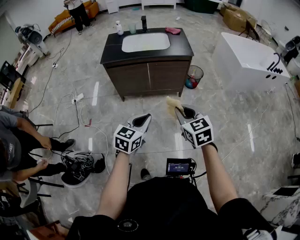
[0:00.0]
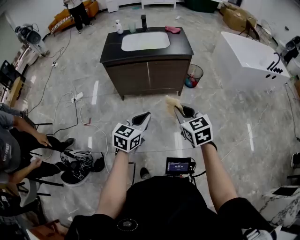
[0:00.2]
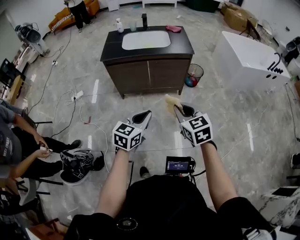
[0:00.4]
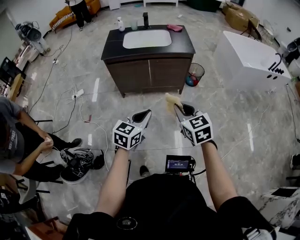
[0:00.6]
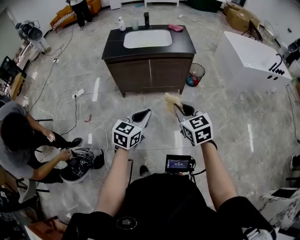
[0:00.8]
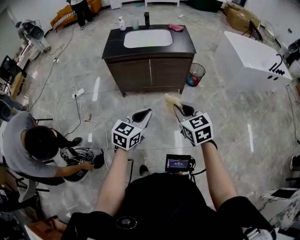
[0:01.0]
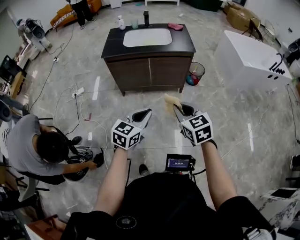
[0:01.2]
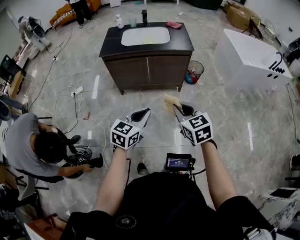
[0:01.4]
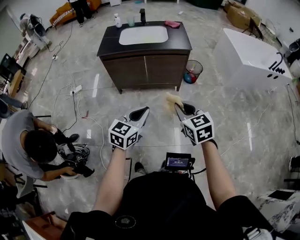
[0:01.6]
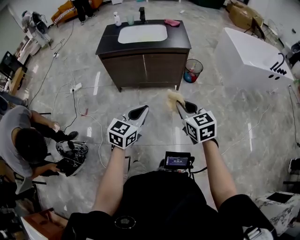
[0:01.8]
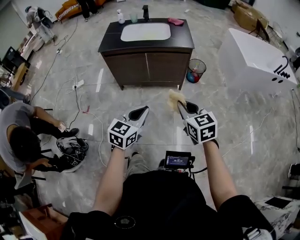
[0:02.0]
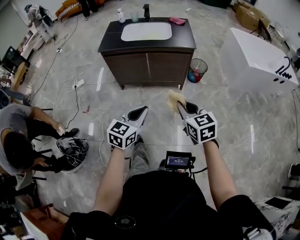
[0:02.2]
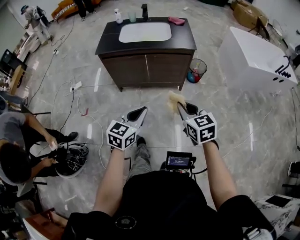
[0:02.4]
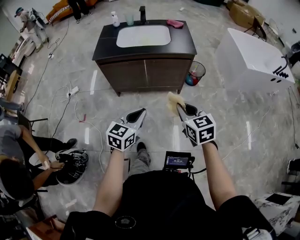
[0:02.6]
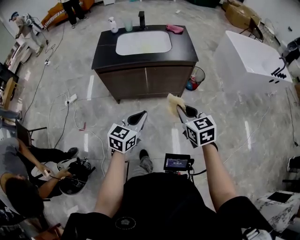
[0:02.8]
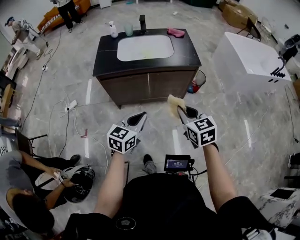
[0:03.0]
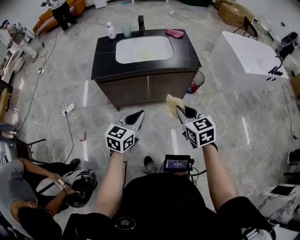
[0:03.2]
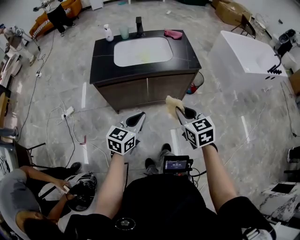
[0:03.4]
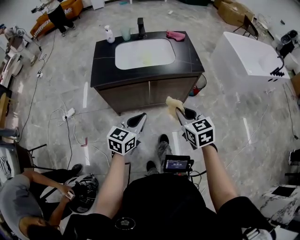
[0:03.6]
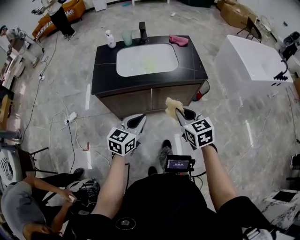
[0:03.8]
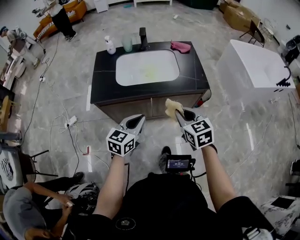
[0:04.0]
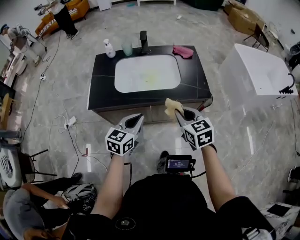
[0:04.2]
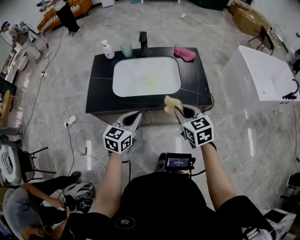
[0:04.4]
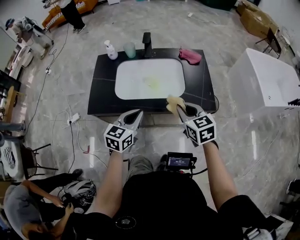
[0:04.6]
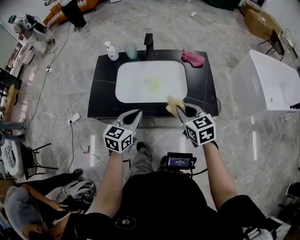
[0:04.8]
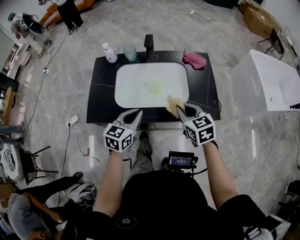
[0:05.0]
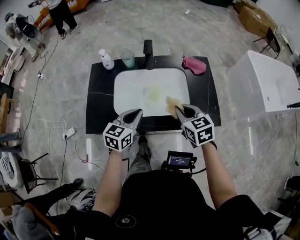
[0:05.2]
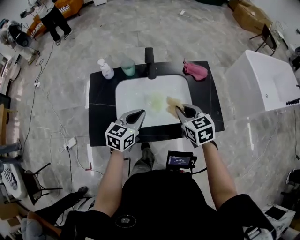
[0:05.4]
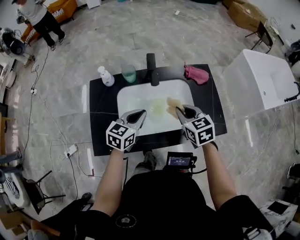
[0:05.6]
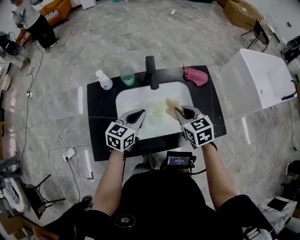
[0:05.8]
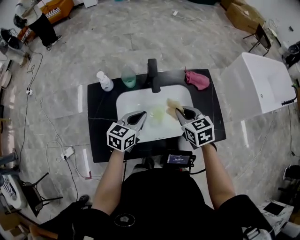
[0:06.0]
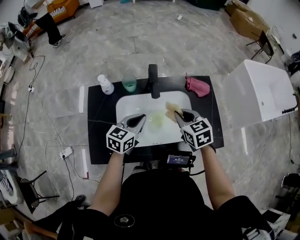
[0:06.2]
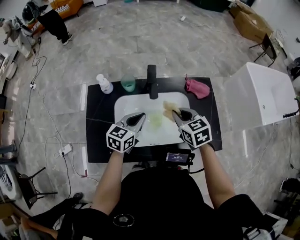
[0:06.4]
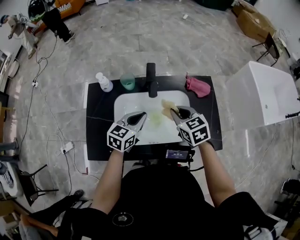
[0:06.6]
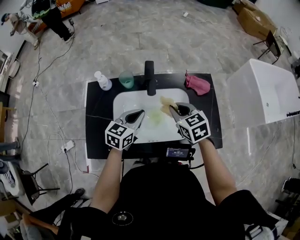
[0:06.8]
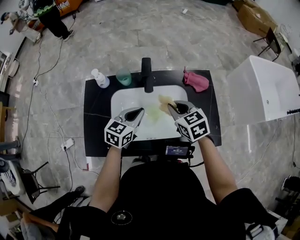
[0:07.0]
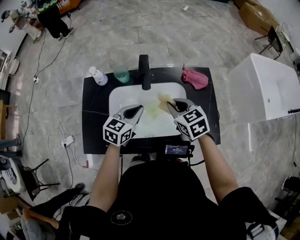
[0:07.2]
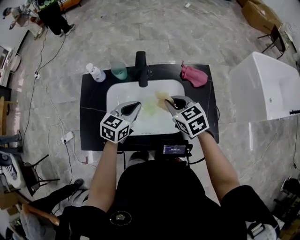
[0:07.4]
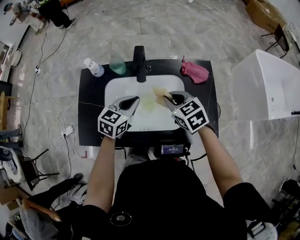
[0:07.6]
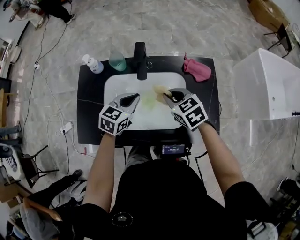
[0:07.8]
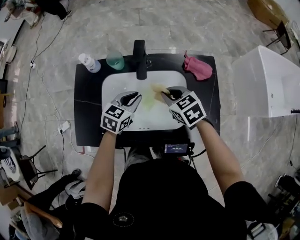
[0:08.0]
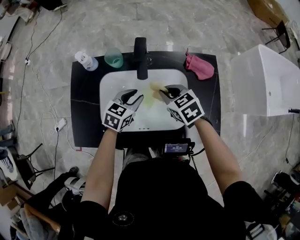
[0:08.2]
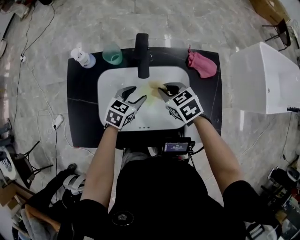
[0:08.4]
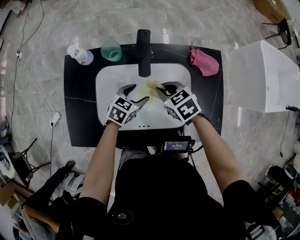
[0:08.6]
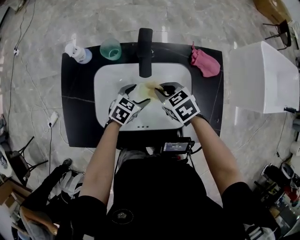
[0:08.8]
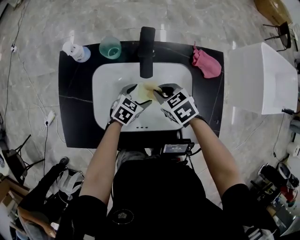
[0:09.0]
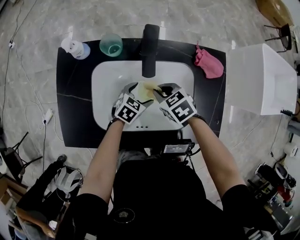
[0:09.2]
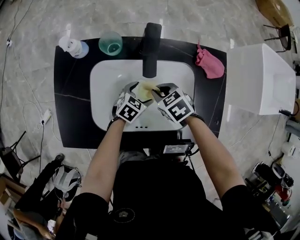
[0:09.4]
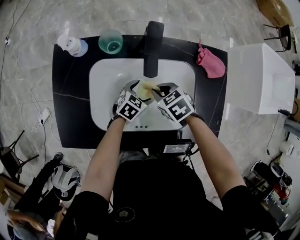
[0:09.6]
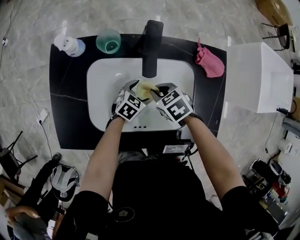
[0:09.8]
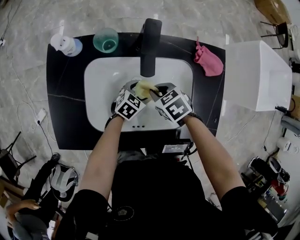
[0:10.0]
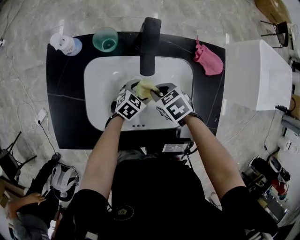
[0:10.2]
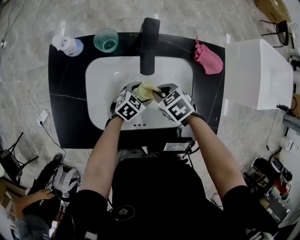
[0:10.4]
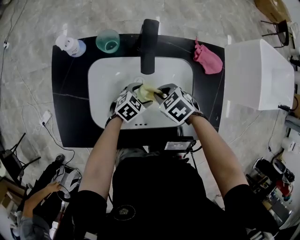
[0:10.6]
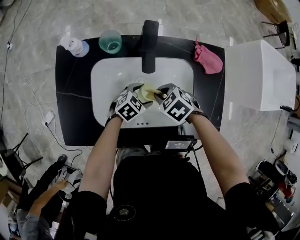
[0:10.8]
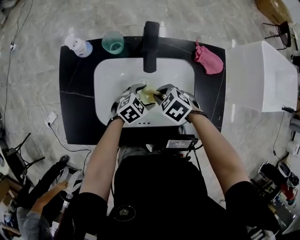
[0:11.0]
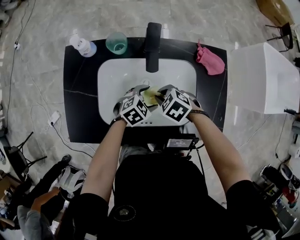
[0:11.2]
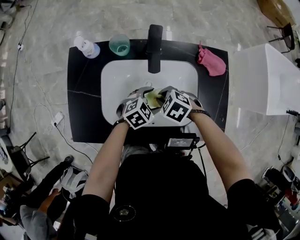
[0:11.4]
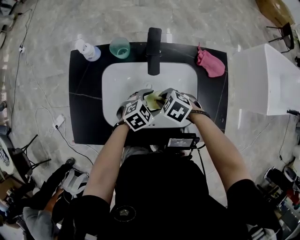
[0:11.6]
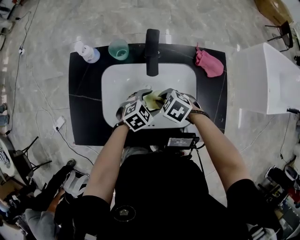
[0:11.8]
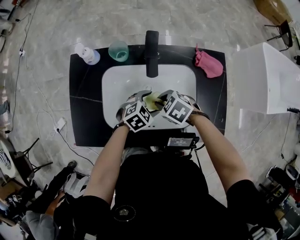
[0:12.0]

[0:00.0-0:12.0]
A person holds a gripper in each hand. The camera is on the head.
0:00.0 to 0:01.6: The grippers move only a little.
0:01.6 to 0:03.0: The right gripper moves forward, about 20 cm. Meanwhile the left gripper heads forward and to the left, covering approximately 20 cm.
0:03.0 to 0:04.4: Both grippers travel together forward, approximately 30 cm.
0:04.4 to 0:06.0: Both grippers move forward, approximately 30 cm.
0:06.0 to 0:07.6: The right gripper swivels approximately 20 degrees, while the left gripper goes roughly 5 cm to the right.
0:07.6 to 0:09.0: The right gripper travels downward and to the left by some 15 cm, while the left gripper is displaced downward by approximately 20 cm, swivels some 20 degrees, and opens up.
0:09.0 to 0:10.4: The left gripper moves roughly 5 cm, while the right gripper shifts by approximately 5 cm.
0:10.4 to 0:12.0: The right gripper shifts by about 5 cm. The left gripper goes roughly 10 cm upward.

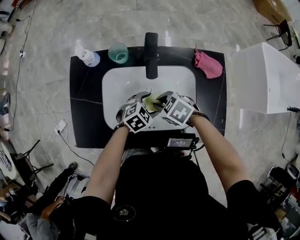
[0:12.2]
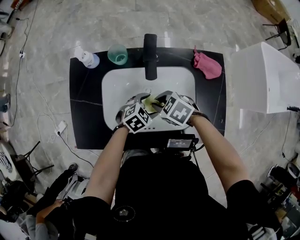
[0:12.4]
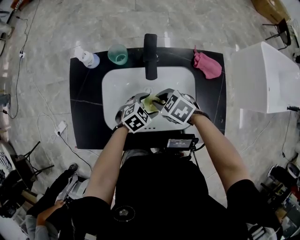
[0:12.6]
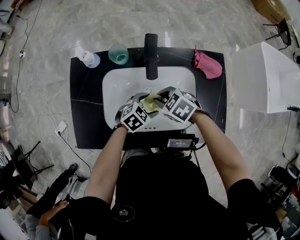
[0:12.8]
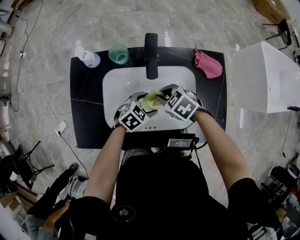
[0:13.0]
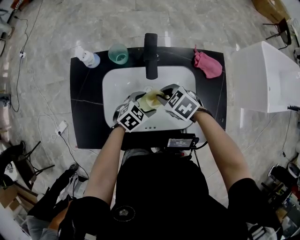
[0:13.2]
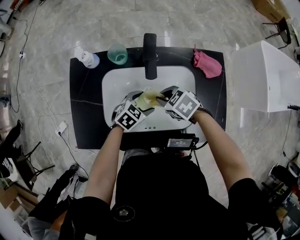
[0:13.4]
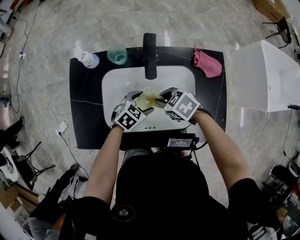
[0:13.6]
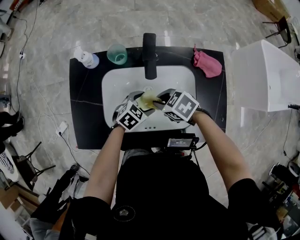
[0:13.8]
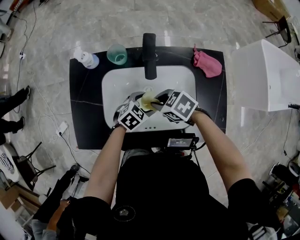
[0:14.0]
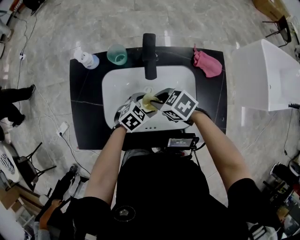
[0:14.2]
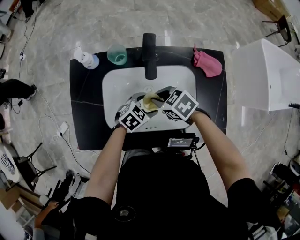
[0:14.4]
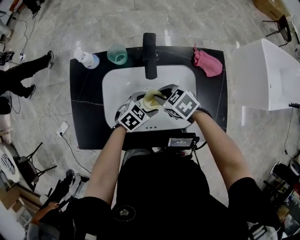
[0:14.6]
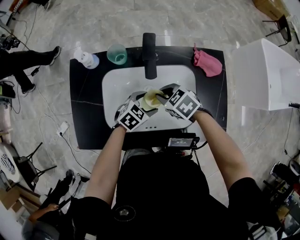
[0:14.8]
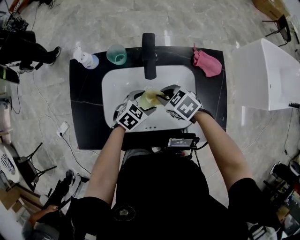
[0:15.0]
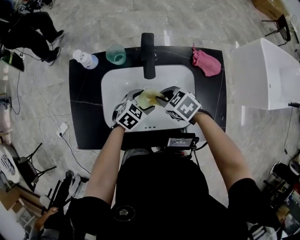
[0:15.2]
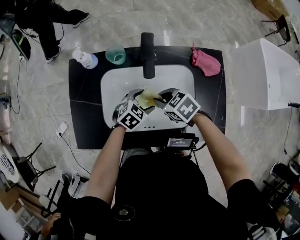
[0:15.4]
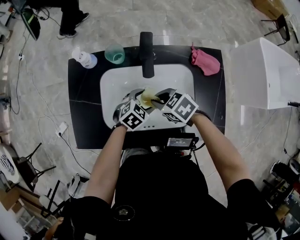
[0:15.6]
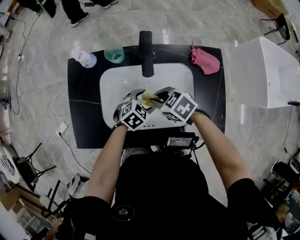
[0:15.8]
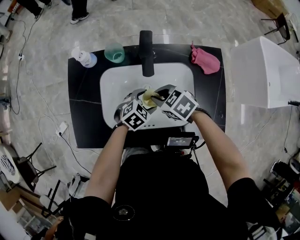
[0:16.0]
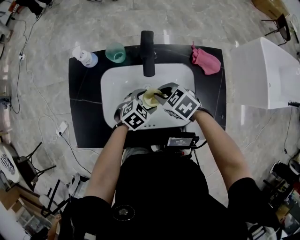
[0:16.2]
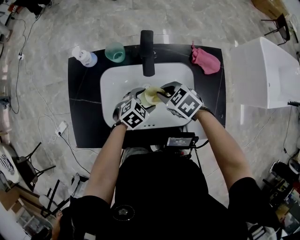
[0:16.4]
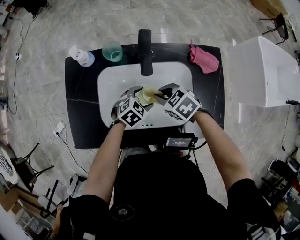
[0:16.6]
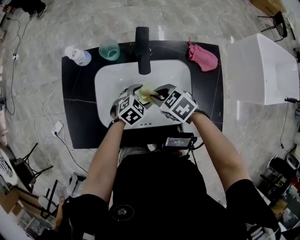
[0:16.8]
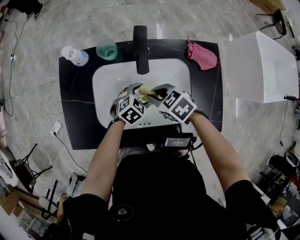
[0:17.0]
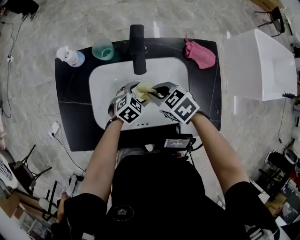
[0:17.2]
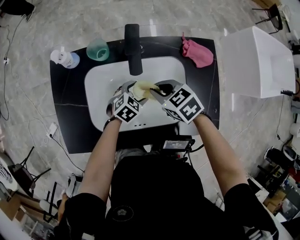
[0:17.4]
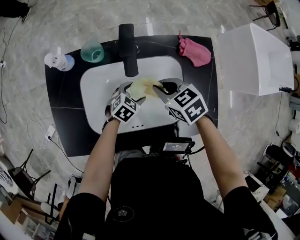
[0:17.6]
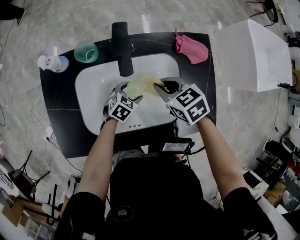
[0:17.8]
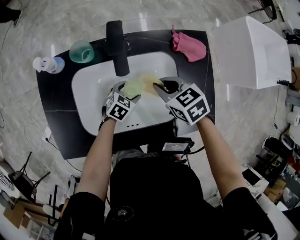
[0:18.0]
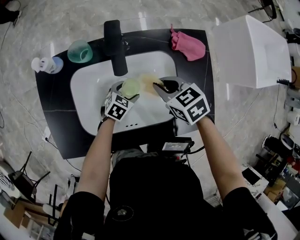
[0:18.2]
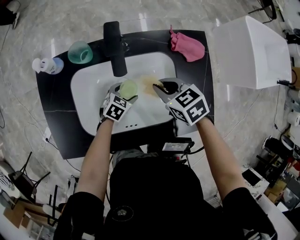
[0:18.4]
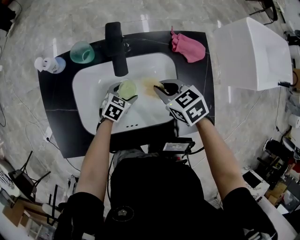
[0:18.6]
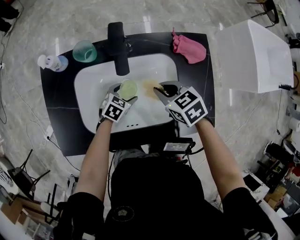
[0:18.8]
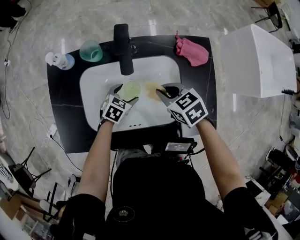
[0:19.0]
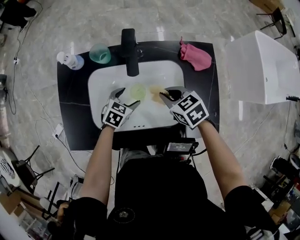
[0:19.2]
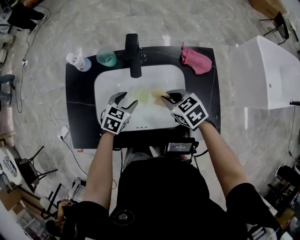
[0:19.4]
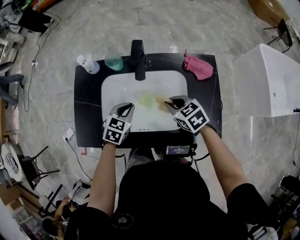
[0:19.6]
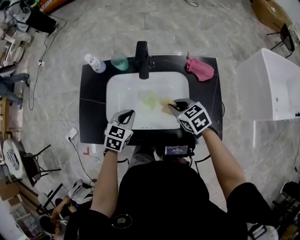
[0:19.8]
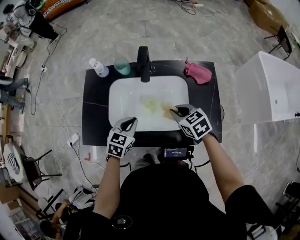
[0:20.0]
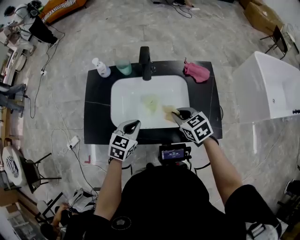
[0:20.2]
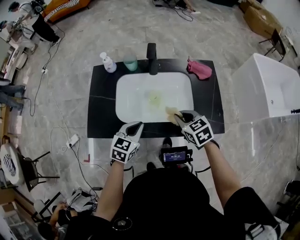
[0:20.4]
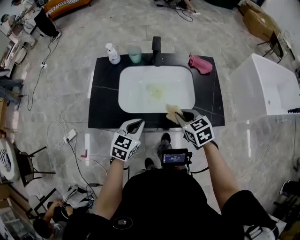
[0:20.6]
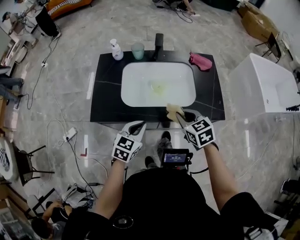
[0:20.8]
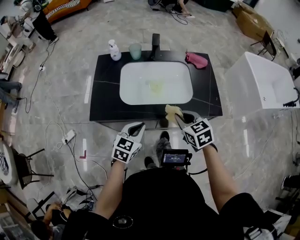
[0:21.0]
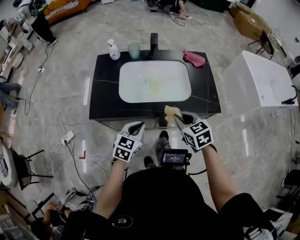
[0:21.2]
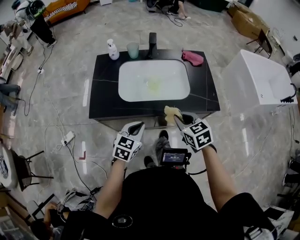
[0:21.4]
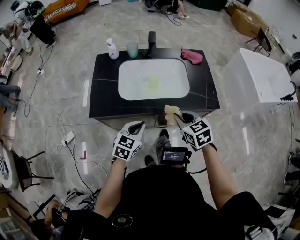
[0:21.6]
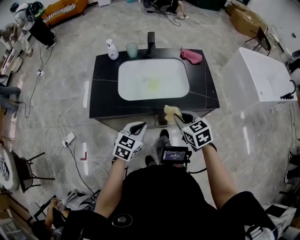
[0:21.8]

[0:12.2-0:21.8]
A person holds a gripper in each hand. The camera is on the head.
0:12.2 to 0:17.0: The grippers move only a little.
0:17.0 to 0:18.6: The right gripper changes place by some 10 cm; the left gripper shifts about 5 cm downward.
0:18.6 to 0:20.2: The right gripper is displaced backward and upward by about 10 cm. Meanwhile the left gripper travels upward and backward by approximately 25 cm, swivels some 30 degrees, and closes its fingers.
0:20.2 to 0:21.8: Both grippers travel together backward, approximately 20 cm.

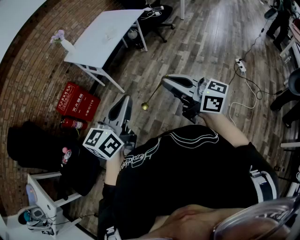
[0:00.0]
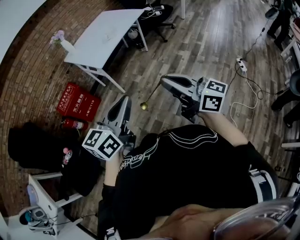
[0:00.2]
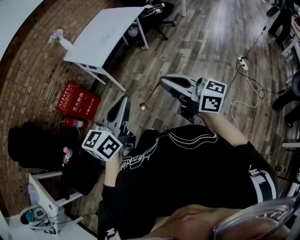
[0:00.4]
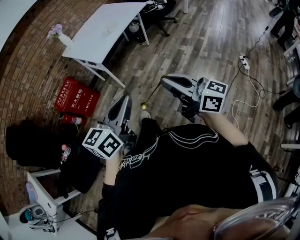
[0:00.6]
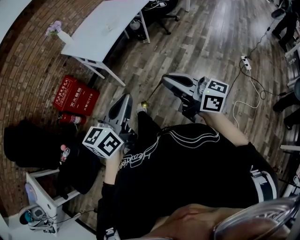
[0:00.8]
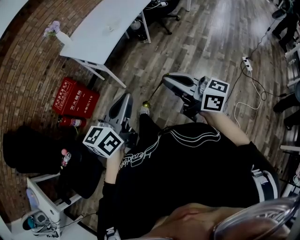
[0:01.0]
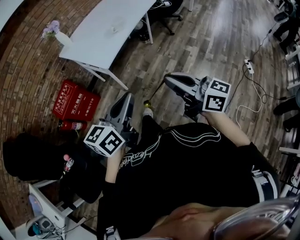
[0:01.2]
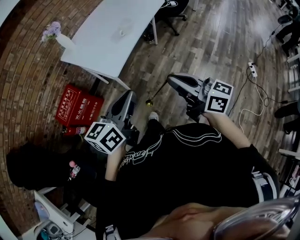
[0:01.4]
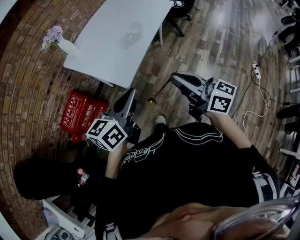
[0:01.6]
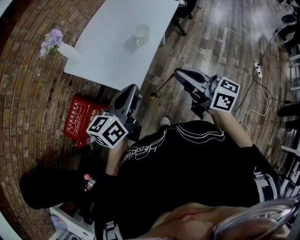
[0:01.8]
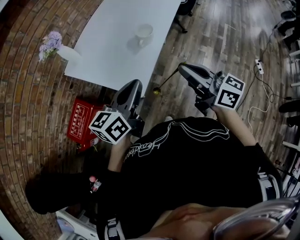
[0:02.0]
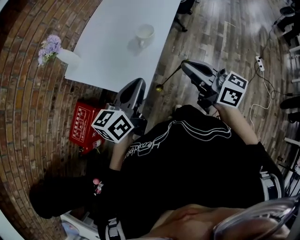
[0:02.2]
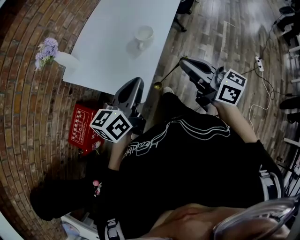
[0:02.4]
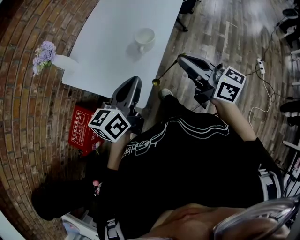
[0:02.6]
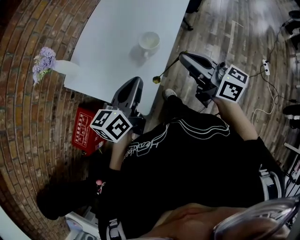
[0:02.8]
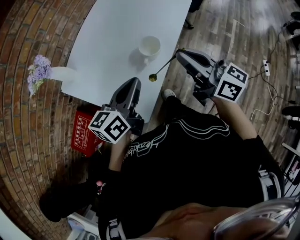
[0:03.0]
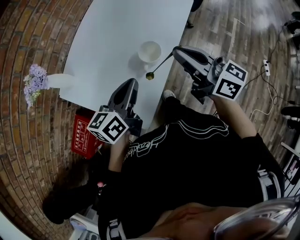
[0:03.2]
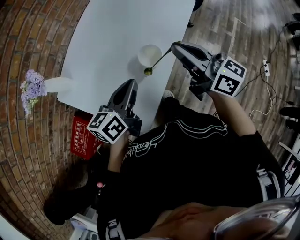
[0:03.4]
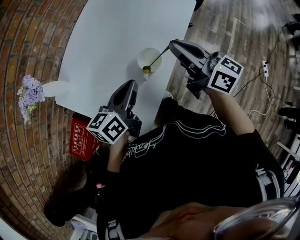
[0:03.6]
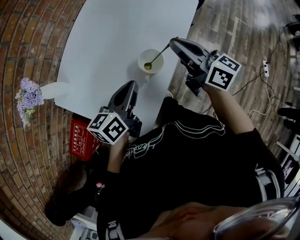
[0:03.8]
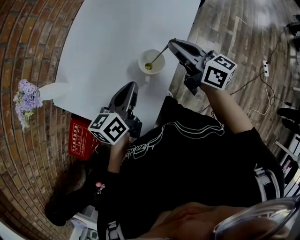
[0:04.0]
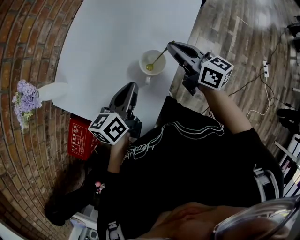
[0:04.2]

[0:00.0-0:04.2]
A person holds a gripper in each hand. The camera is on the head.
0:00.0 to 0:01.4: Both grippers travel together forward, some 30 cm.
0:01.4 to 0:02.8: Both grippers travel together forward, some 35 cm.
0:02.8 to 0:04.2: The two grippers go approximately 20 cm forward and downward.
